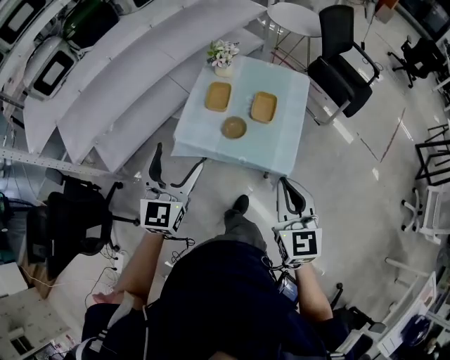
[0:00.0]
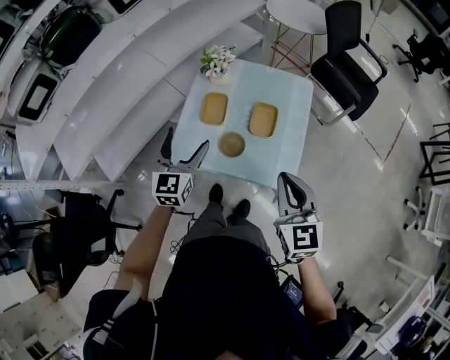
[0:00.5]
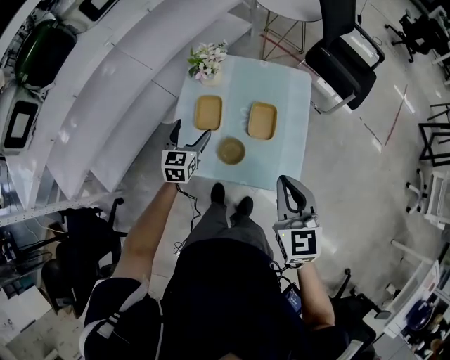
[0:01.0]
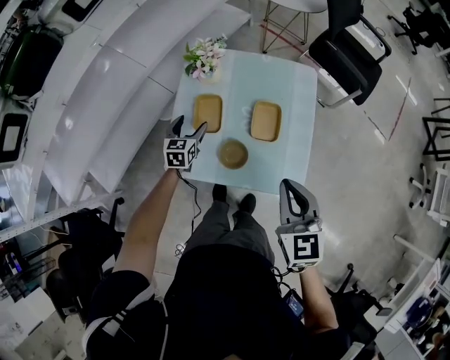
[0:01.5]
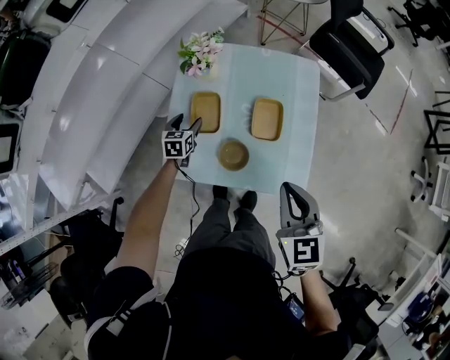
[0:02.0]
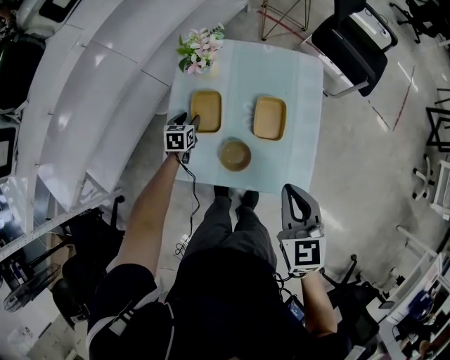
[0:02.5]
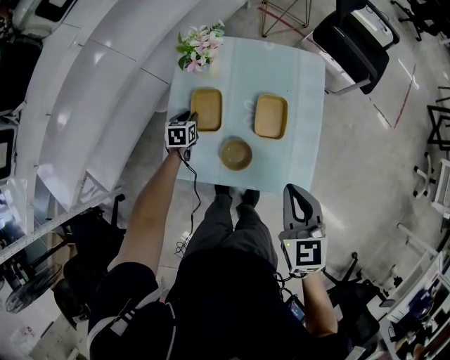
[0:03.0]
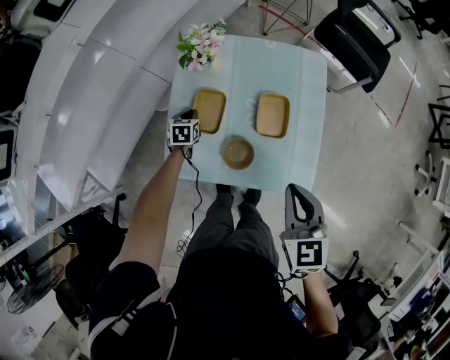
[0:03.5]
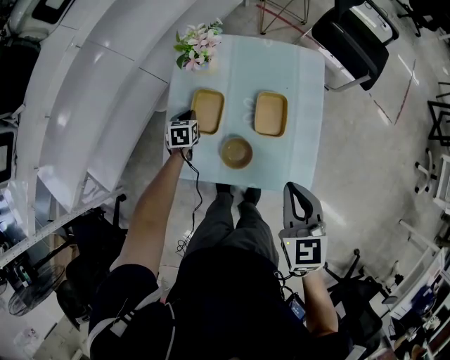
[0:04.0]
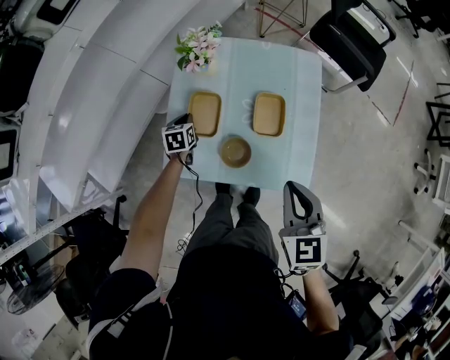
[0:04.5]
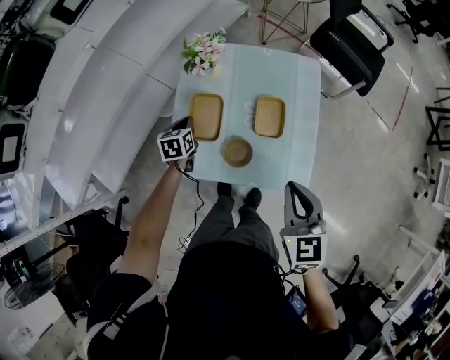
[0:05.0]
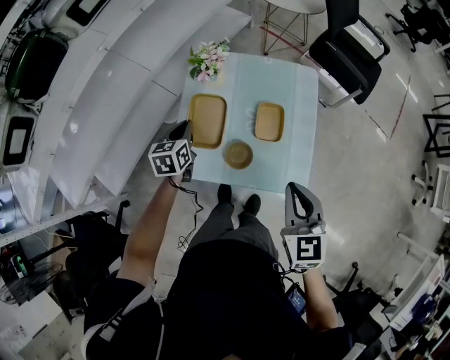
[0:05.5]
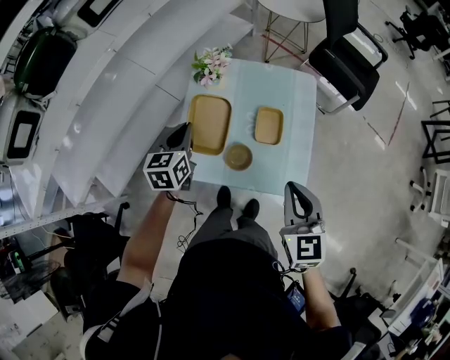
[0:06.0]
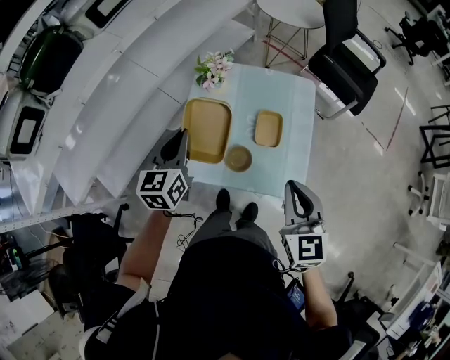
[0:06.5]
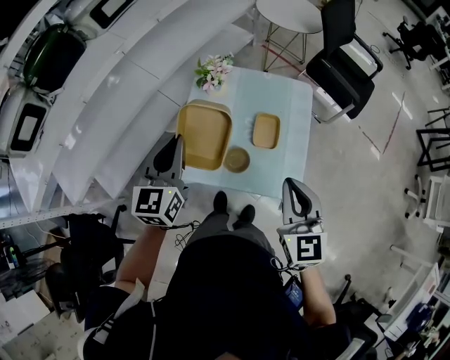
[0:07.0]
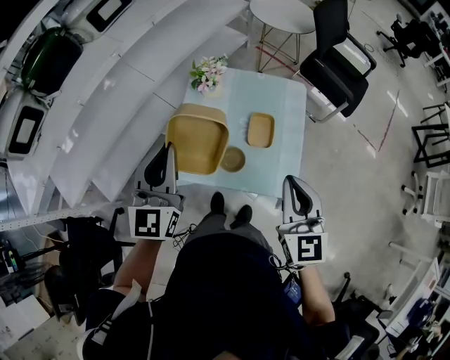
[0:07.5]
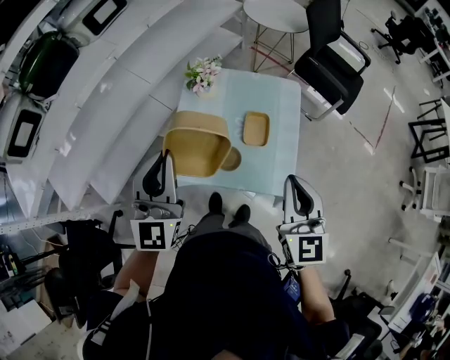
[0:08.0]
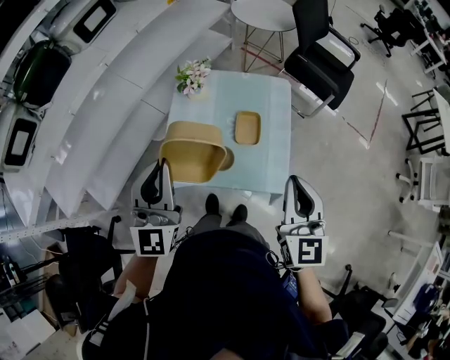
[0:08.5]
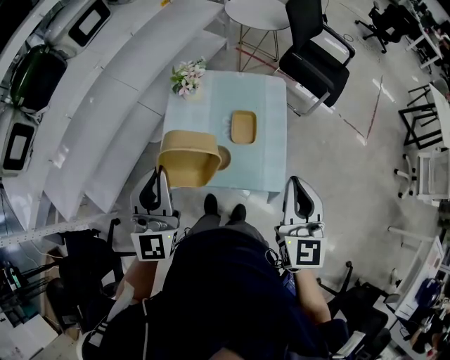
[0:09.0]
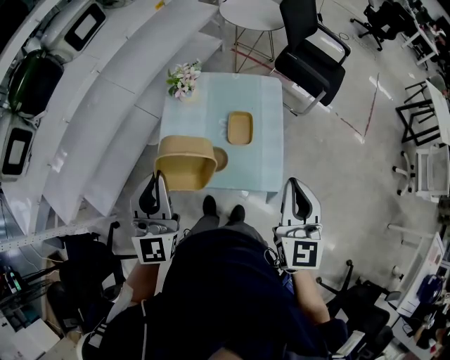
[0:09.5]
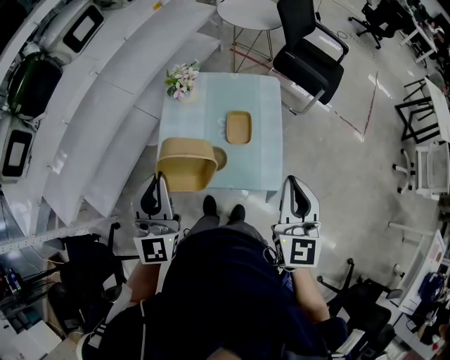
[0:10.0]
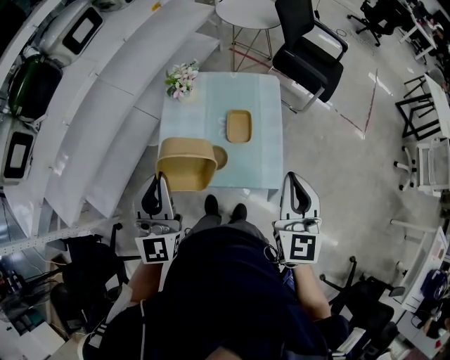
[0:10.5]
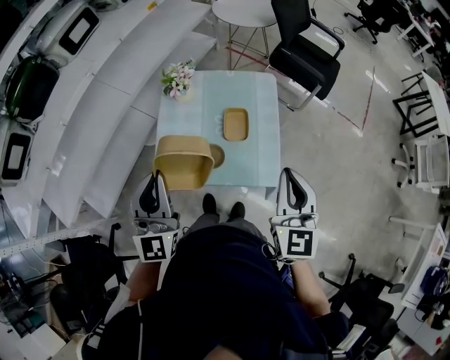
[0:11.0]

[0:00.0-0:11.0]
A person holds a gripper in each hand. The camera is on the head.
0:00.0 to 0:02.0: The right gripper moves forward and downward, about 25 cm, while the left gripper travels downward and forward by about 60 cm, points its fingers about 40 degrees further downward, and closes.
0:02.0 to 0:03.5: The left gripper moves downward, some 5 cm, and closes up.
0:03.5 to 0:05.5: The right gripper travels upward by roughly 5 cm; the left gripper goes roughly 25 cm upward.
0:05.5 to 0:07.5: The left gripper goes approximately 30 cm upward and backward, and angles its fingers upward, by some 40 degrees. The right gripper travels upward by roughly 10 cm.
0:07.5 to 0:09.0: The right gripper moves about 5 cm. The left gripper moves backward, some 5 cm.
0:09.0 to 0:11.0: The grippers make only small movements.

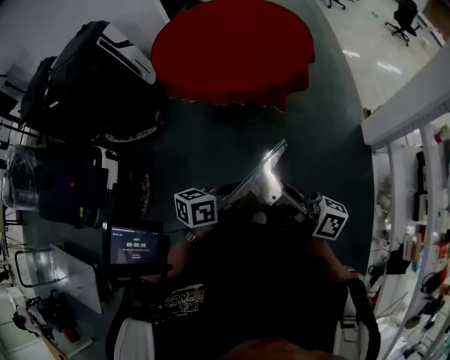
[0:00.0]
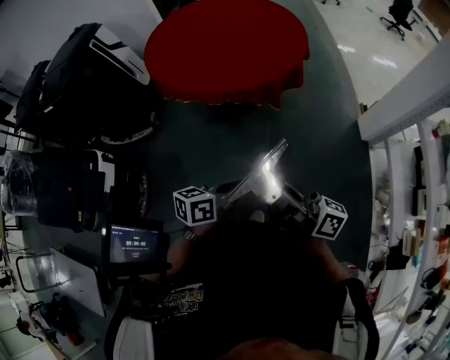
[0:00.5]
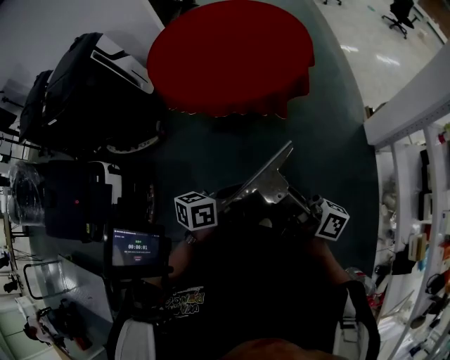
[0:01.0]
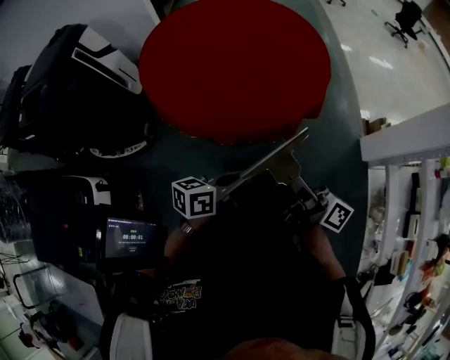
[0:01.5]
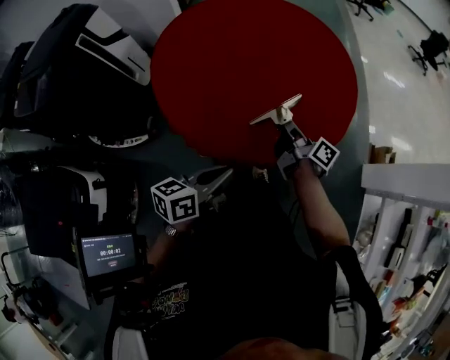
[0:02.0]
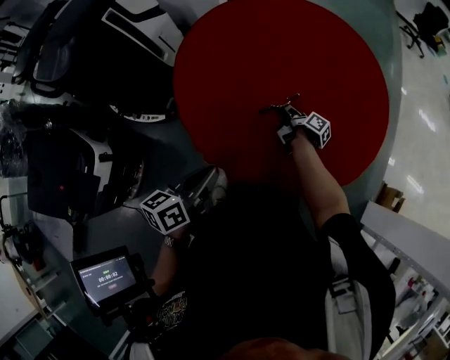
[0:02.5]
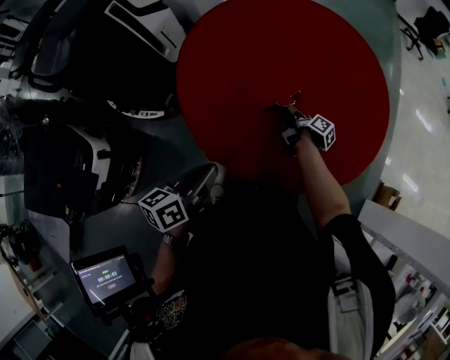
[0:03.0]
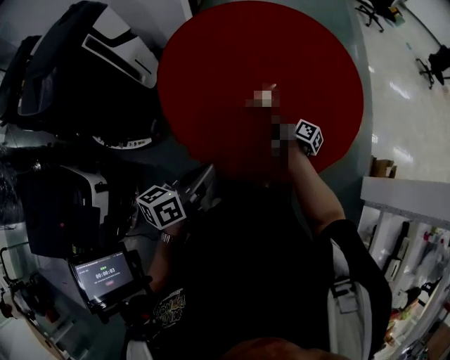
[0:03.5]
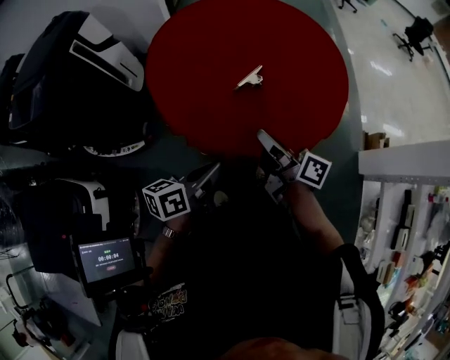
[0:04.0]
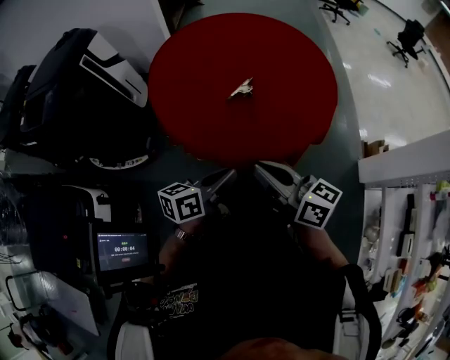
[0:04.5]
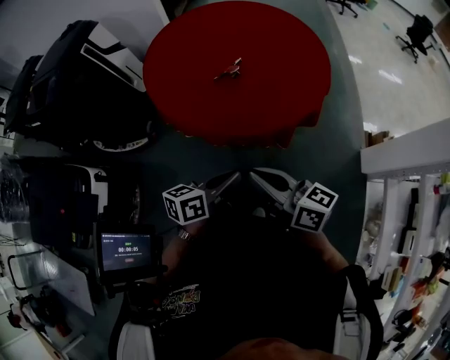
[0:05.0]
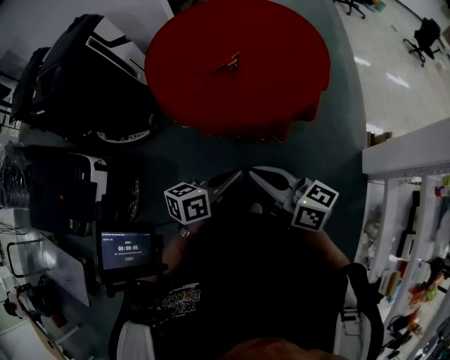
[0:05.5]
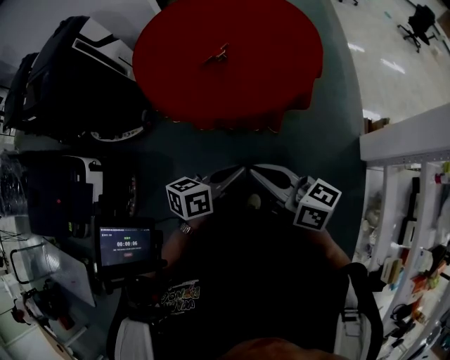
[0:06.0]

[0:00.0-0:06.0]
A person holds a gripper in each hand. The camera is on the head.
0:00.0 to 0:02.0: The pair of grippers is taken forward, approximately 50 cm. The right gripper turns by about 30 degrees.
0:02.0 to 0:04.0: The right gripper is displaced to the left, backward and upward by some 20 cm. The left gripper heads to the left, covering approximately 5 cm, and moves approximately 5 cm forward and comes back.
0:04.0 to 0:06.0: The left gripper shifts roughly 30 cm to the right and backward; the right gripper moves backward and to the right, about 30 cm, and swivels some 20 degrees.

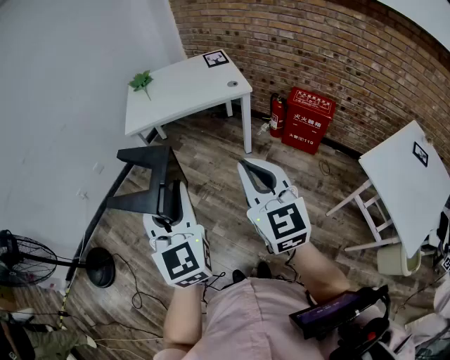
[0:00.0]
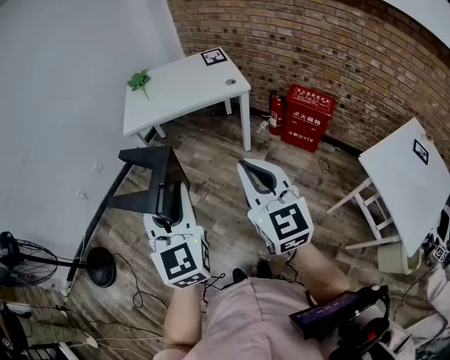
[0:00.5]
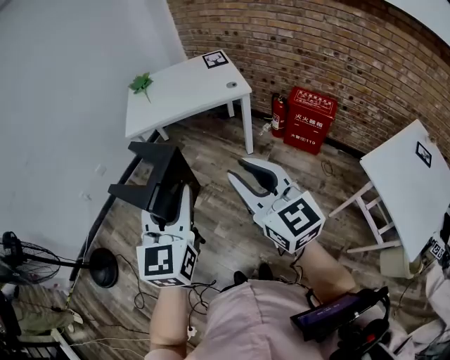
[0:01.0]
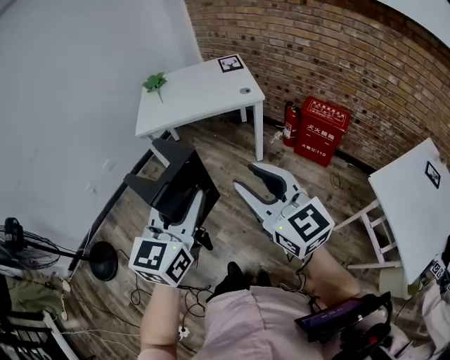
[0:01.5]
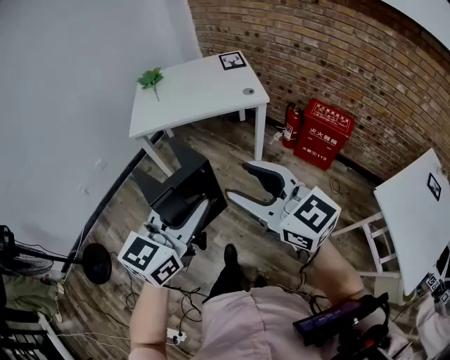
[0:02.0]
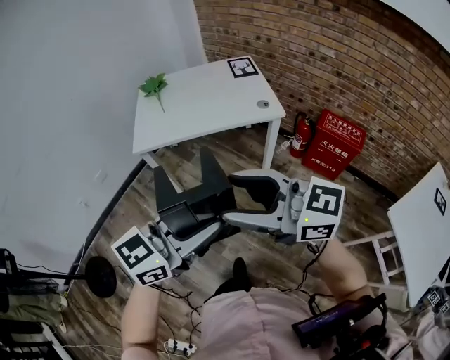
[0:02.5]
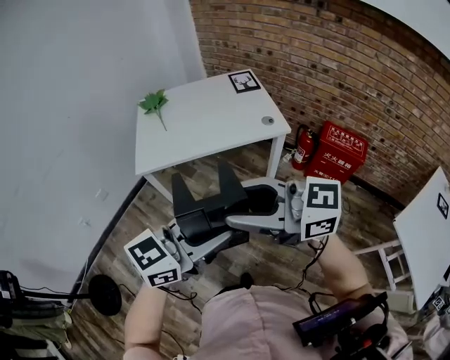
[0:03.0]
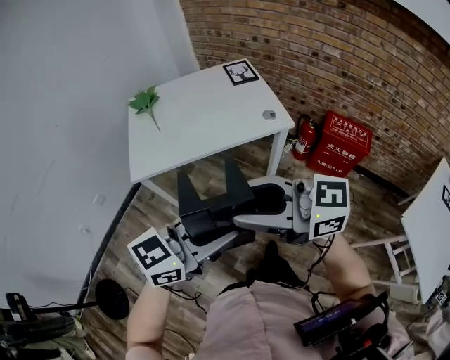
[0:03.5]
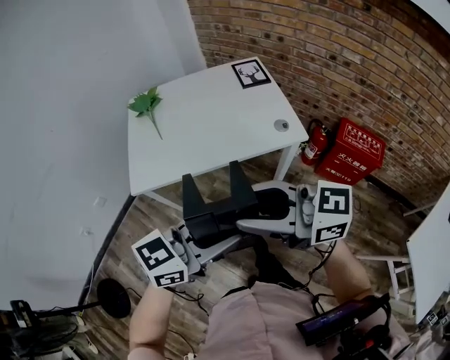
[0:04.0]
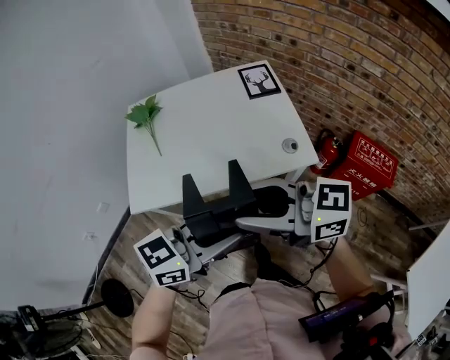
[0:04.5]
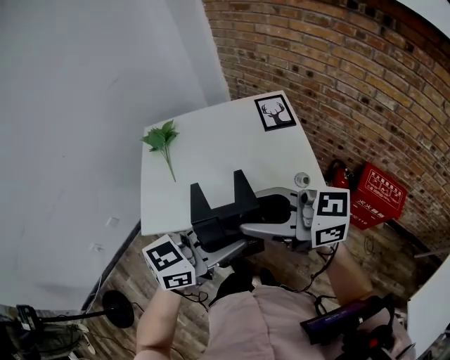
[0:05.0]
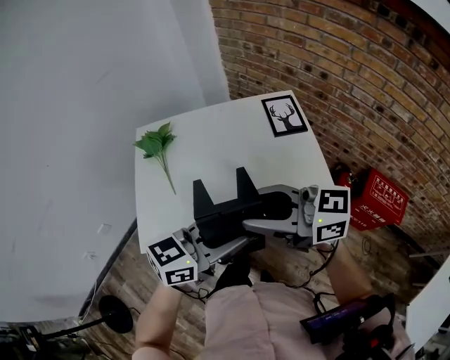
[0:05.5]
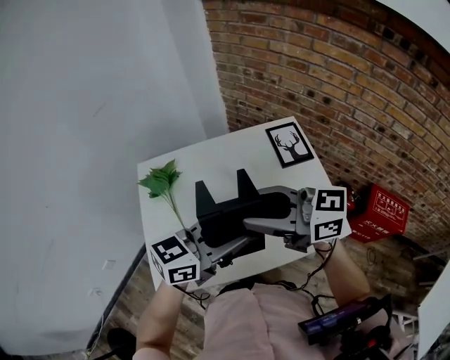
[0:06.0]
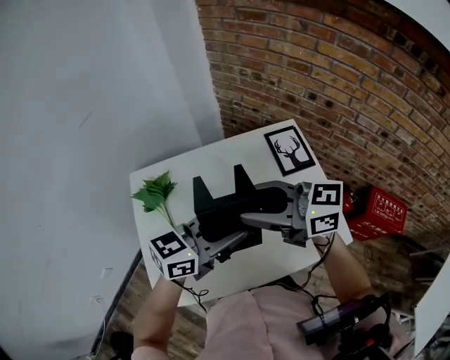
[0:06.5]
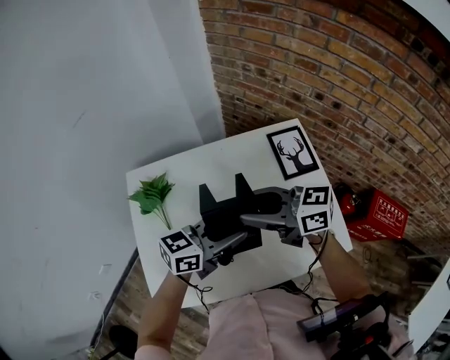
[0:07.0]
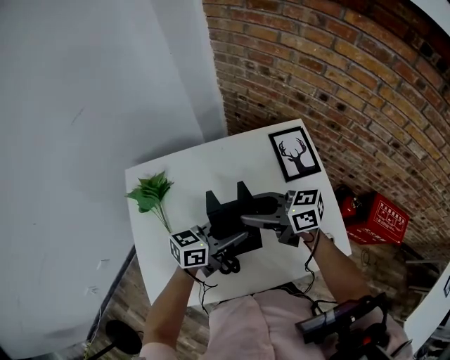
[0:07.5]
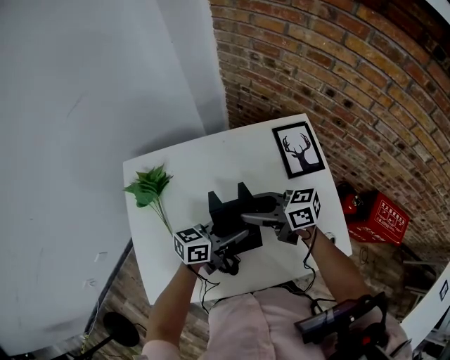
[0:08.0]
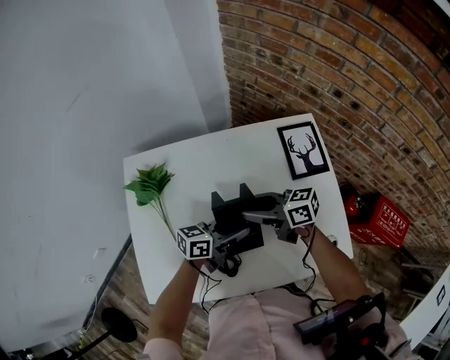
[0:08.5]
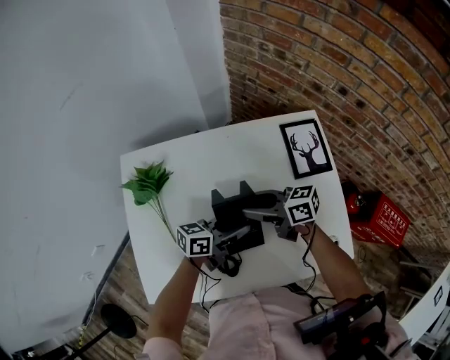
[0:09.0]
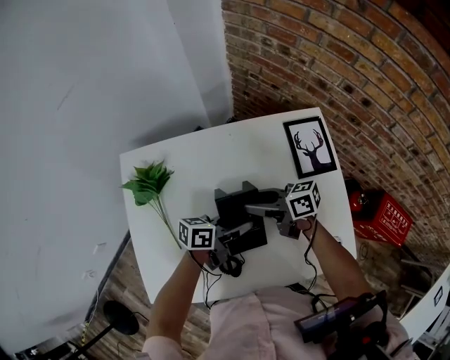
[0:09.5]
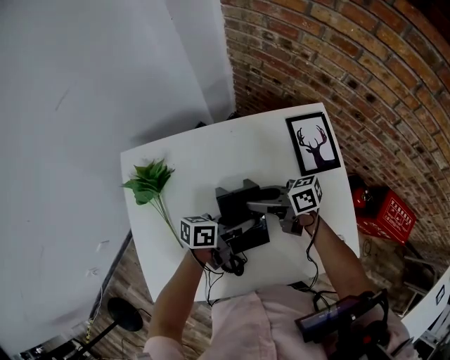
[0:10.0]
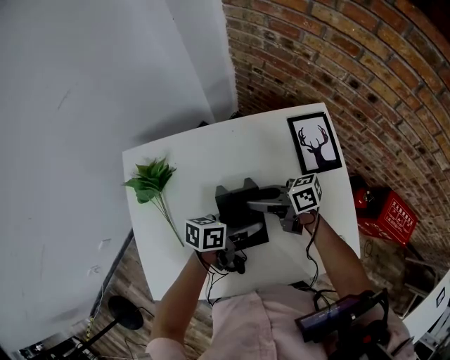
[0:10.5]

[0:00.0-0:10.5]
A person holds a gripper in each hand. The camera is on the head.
0:00.0 to 0:02.0: The right gripper is displaced forward by about 10 cm, turns by some 30 degrees, and opens its fingers. Meanwhile the left gripper moves to the right and forward, about 10 cm, and turns by roughly 40 degrees.
0:02.0 to 0:04.0: The right gripper moves approximately 35 cm, and rotates about 30 degrees. The left gripper changes place by some 30 cm, and turns by some 30 degrees.
0:04.0 to 0:06.5: Both grippers are carried about 50 cm.
0:06.5 to 0:08.5: The two grippers go approximately 20 cm downward. The right gripper swivels about 30 degrees. The left gripper changes its angle by about 30 degrees.
0:08.5 to 0:10.5: The left gripper opens up.
